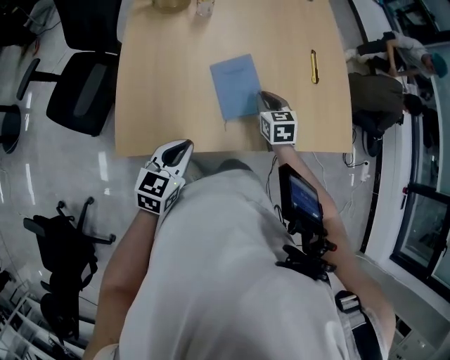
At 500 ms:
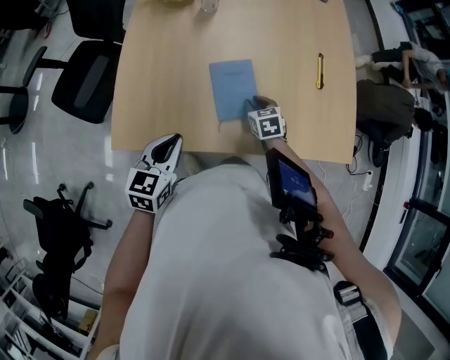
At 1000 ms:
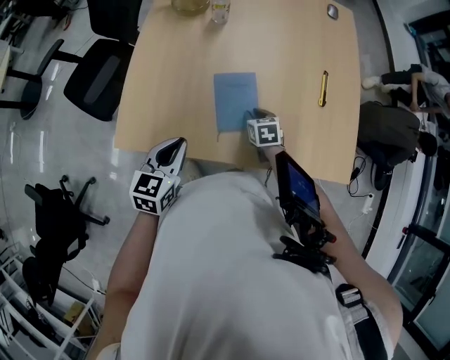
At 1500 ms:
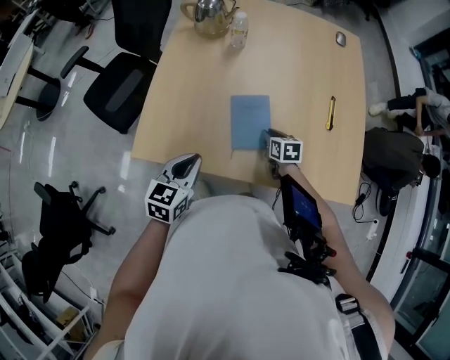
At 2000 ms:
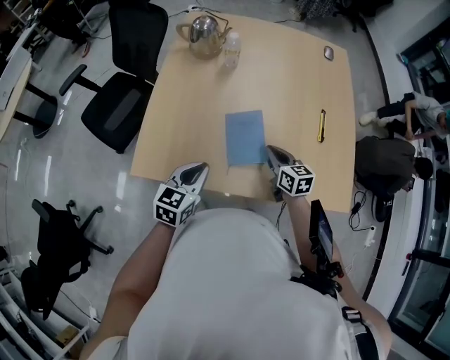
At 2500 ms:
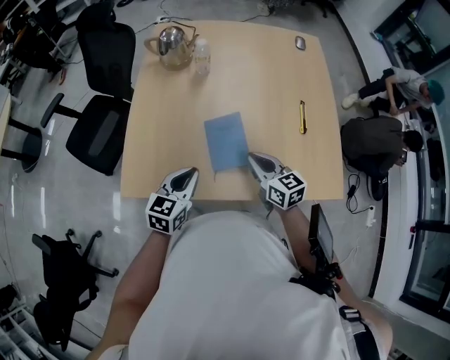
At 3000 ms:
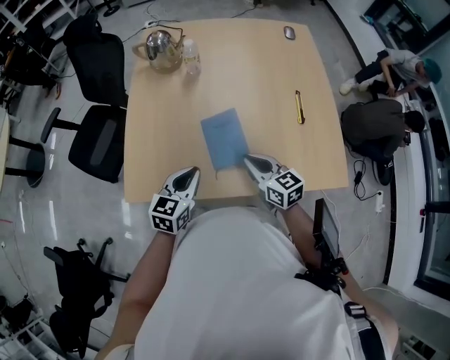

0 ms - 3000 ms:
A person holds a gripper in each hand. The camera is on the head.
0 ms - 1500 ms: The right gripper heads downward, covering about 5 cm, and changes its angle by approximately 20 degrees.
1500 ms - 3000 ms: The left gripper is displaced to the right by roughly 5 cm; the right gripper shifts approximately 20 cm upward and backward, and rotates some 30 degrees.

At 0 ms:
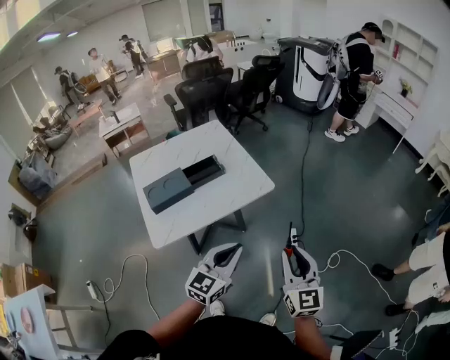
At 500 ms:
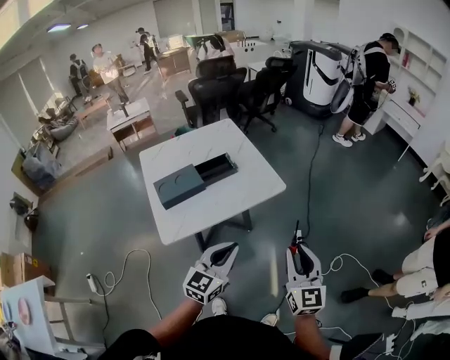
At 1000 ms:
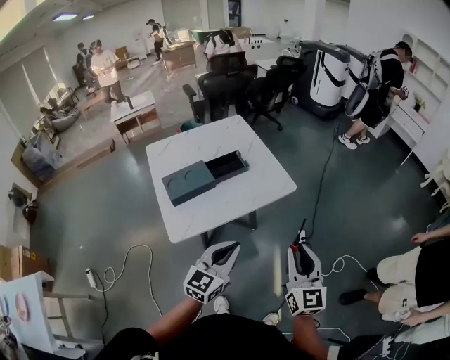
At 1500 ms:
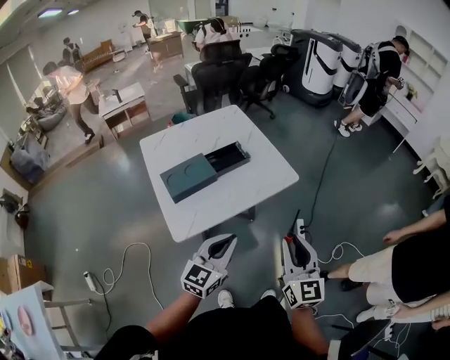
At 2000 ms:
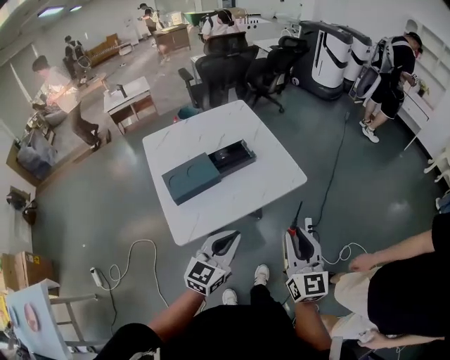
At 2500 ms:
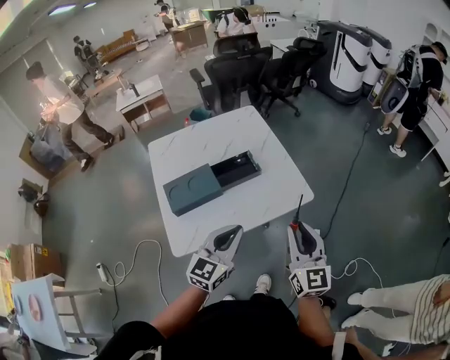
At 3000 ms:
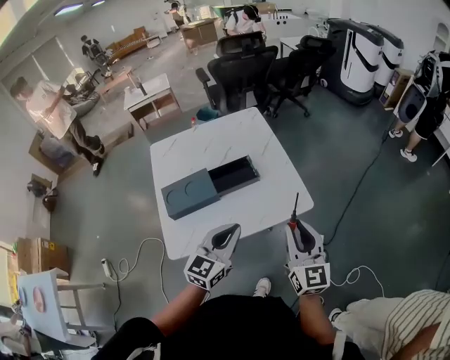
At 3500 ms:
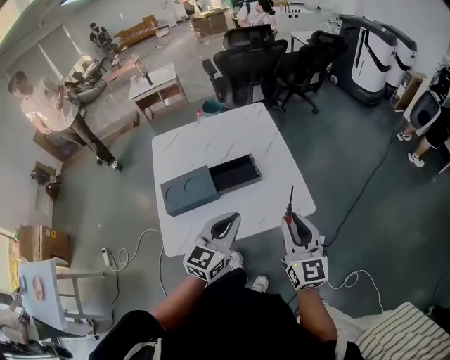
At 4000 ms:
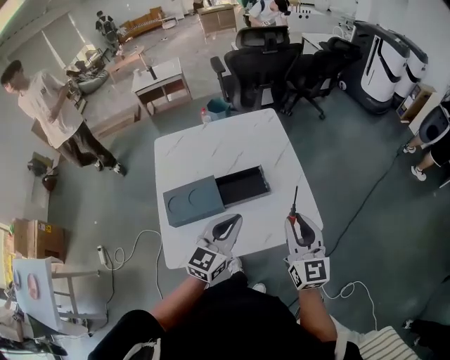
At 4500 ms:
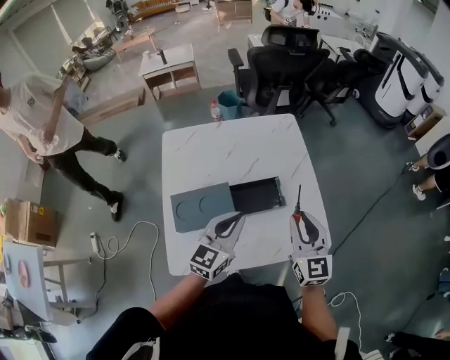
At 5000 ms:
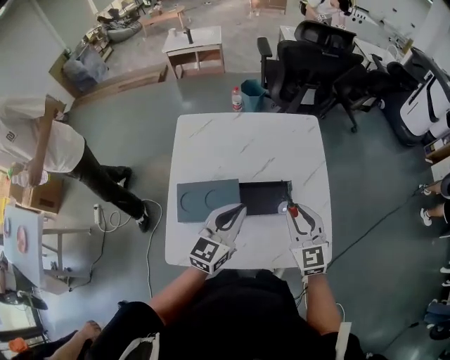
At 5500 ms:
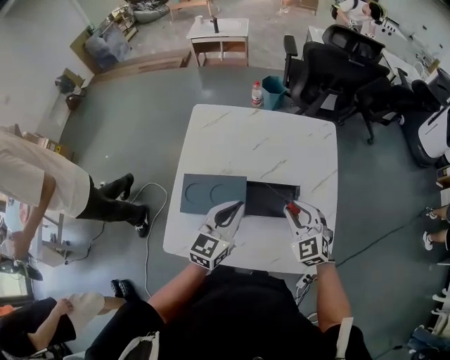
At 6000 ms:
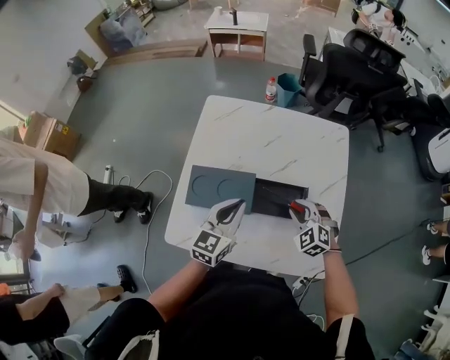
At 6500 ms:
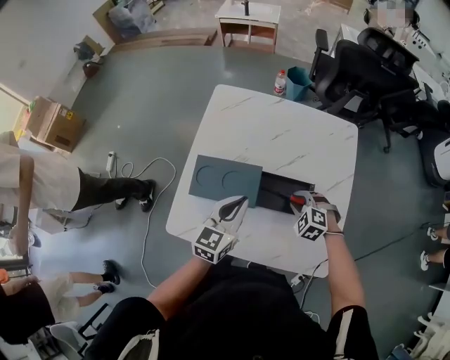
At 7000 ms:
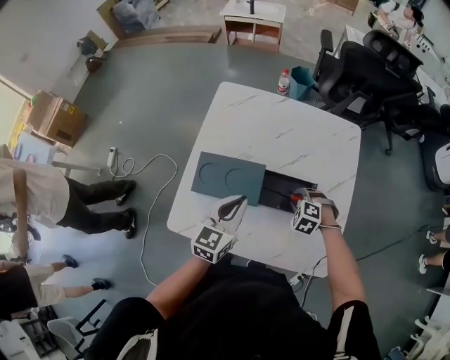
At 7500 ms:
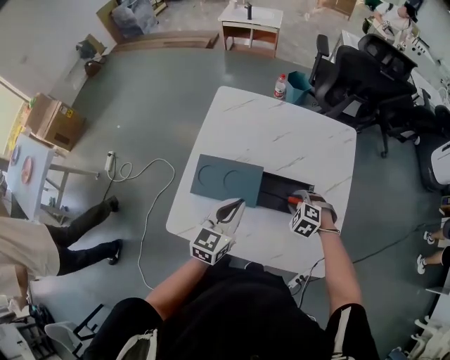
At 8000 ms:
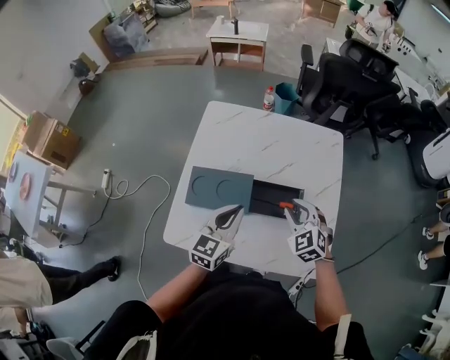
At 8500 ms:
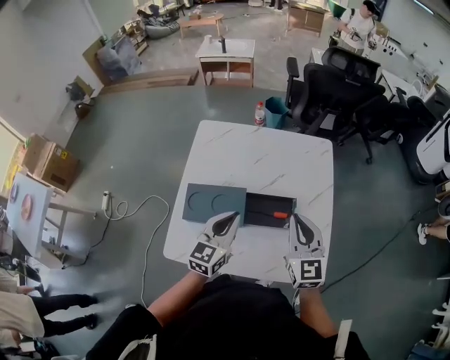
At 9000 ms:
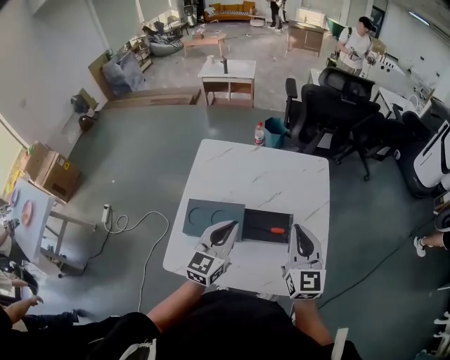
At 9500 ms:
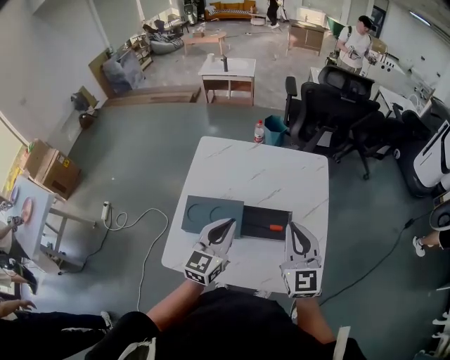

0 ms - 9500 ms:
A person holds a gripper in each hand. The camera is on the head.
0 ms - 2000 ms: The grippers both shift to the left by some 15 cm.
2000 ms - 4000 ms: The two grippers go roughly 25 cm forward.
4000 ms - 5500 ms: The right gripper moves approximately 25 cm, and turns by roughly 60 degrees, while the left gripper ends up roughly 15 cm from where it was, and changes its angle by some 20 degrees.
5500 ms - 7500 ms: The left gripper shifts by approximately 5 cm, while the right gripper heads downward, covering some 15 cm, and tilts its fingers about 40 degrees downward.
7500 ms - 9500 ms: The right gripper goes roughly 30 cm upward, tilts its fingers approximately 60 degrees upward, and closes. Meanwhile the left gripper travels upward by roughly 10 cm.

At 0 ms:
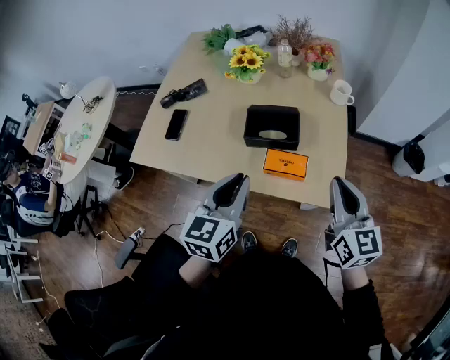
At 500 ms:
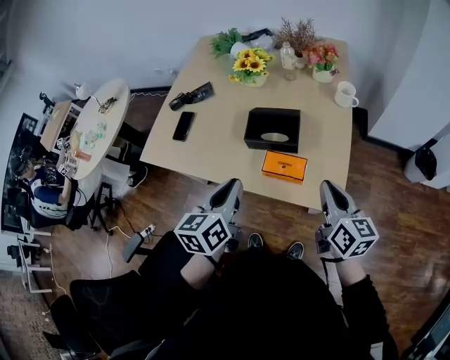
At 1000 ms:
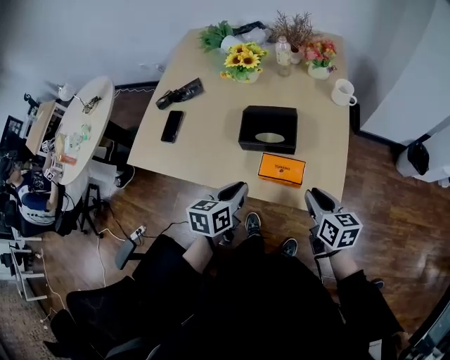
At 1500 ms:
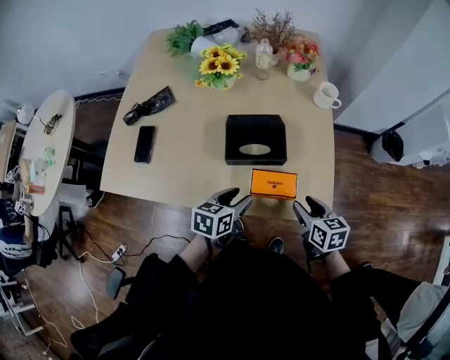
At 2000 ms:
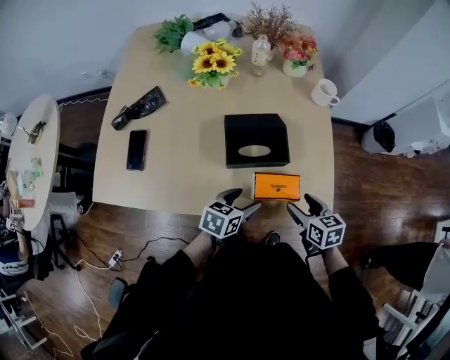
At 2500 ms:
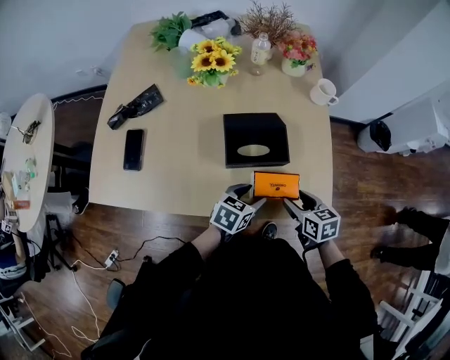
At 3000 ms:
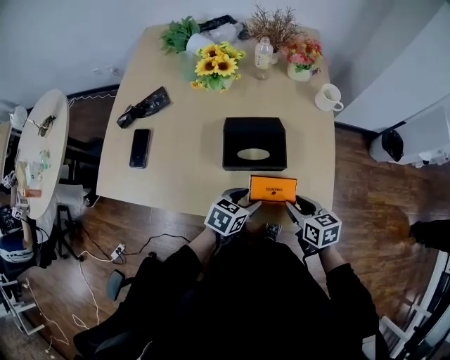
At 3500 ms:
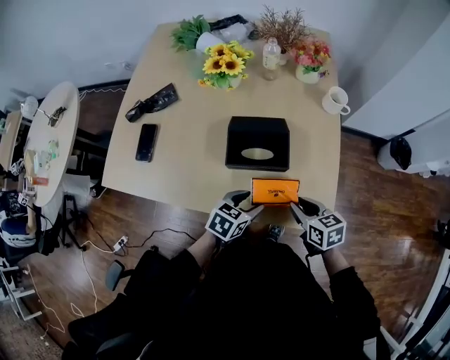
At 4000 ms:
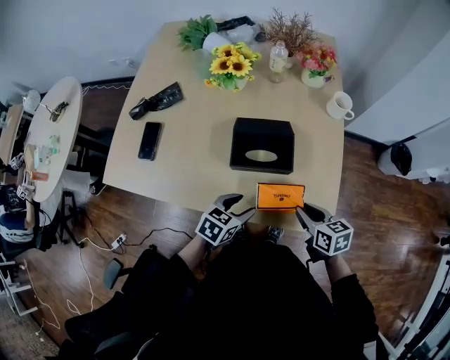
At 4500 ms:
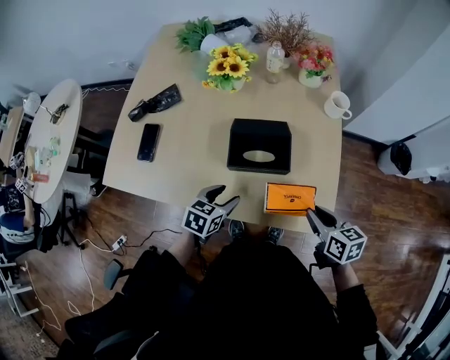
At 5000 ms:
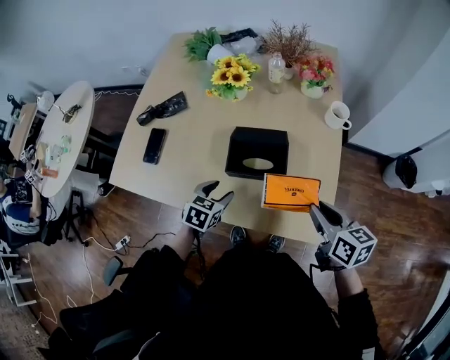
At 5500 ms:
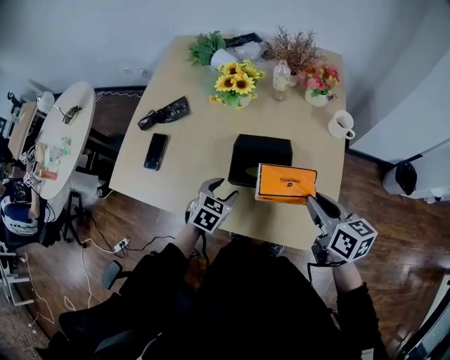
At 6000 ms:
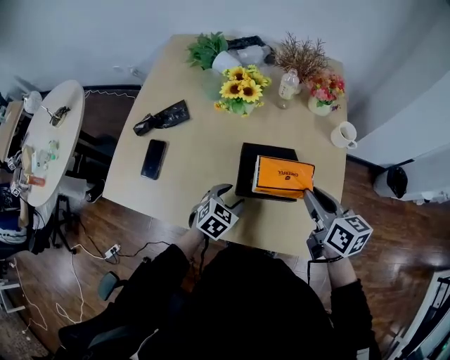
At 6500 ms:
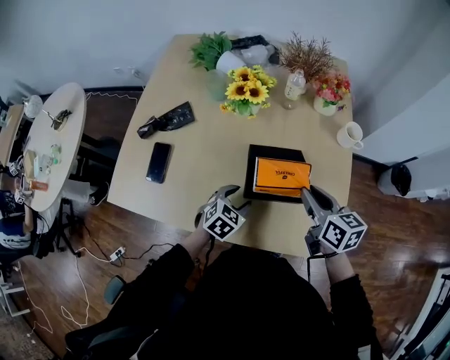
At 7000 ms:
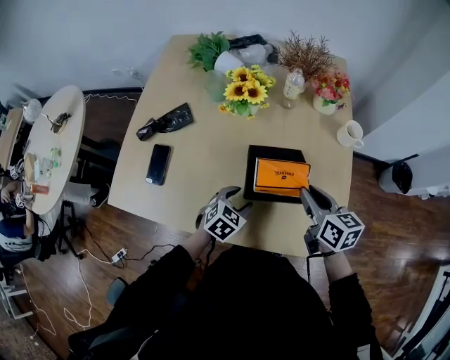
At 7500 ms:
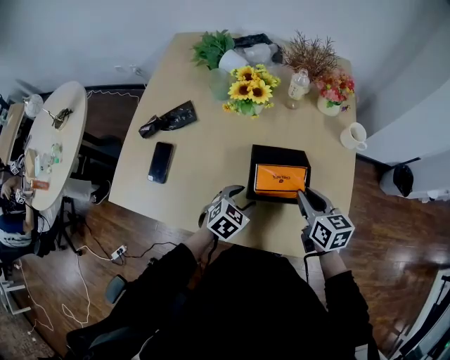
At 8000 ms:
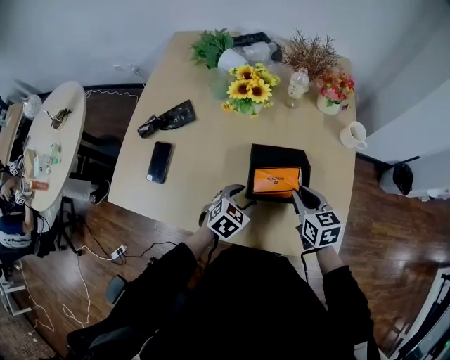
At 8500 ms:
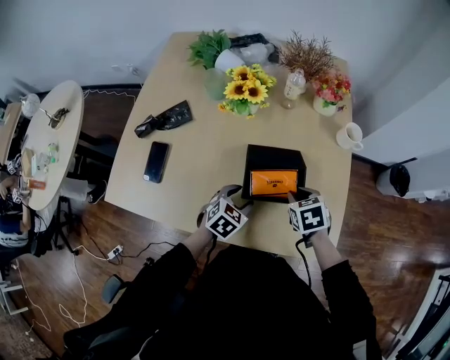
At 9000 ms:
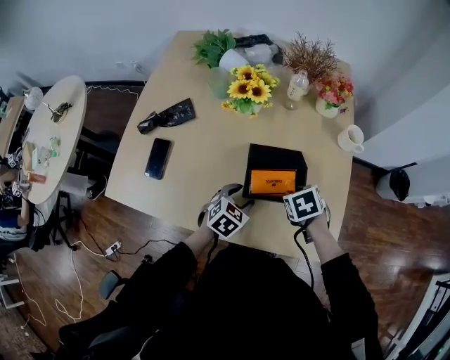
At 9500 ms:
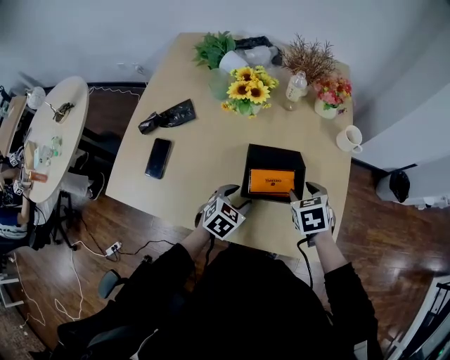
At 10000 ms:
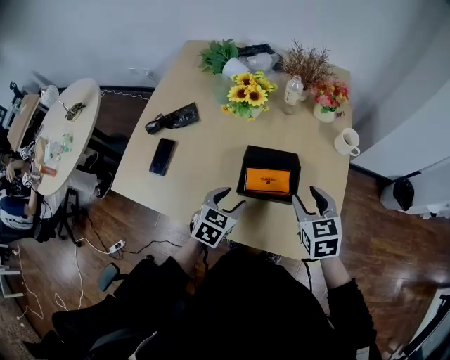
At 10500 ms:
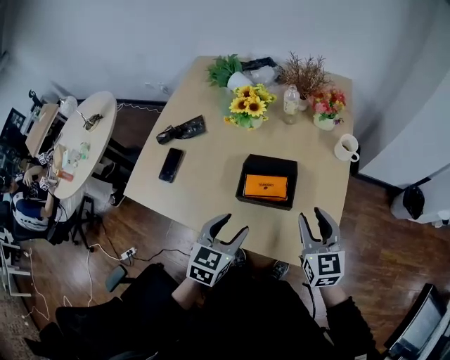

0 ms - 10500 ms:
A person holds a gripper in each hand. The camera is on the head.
0 ms - 2000 ms: The grippers both shift downward by some 25 cm. The left gripper rotates about 40 degrees, and opens up; the right gripper angles its fingers downward, by approximately 30 degrees, and opens.
2000 ms - 4000 ms: The right gripper closes up.
4000 ms - 6500 ms: The right gripper is displaced forward, upward and to the left by some 20 cm; the left gripper shifts some 15 cm forward and to the left, and turns by about 20 degrees.
6500 ms - 8500 ms: The right gripper heads downward, covering some 10 cm, and tilts its fingers approximately 40 degrees downward.
8500 ms - 10500 ms: The left gripper is displaced upward and backward by roughly 20 cm, and turns by roughly 30 degrees. Meanwhile the right gripper travels upward and to the right by roughly 15 cm, and tilts its fingers about 50 degrees upward.

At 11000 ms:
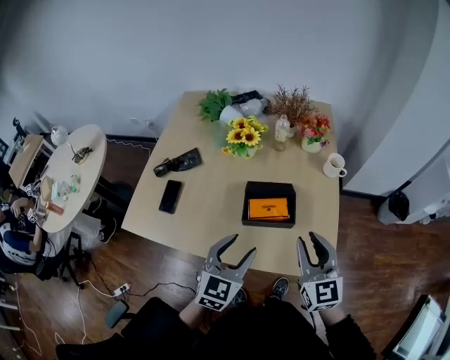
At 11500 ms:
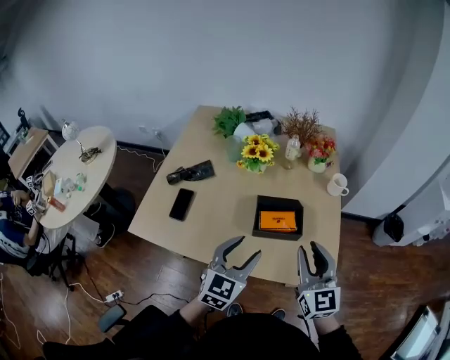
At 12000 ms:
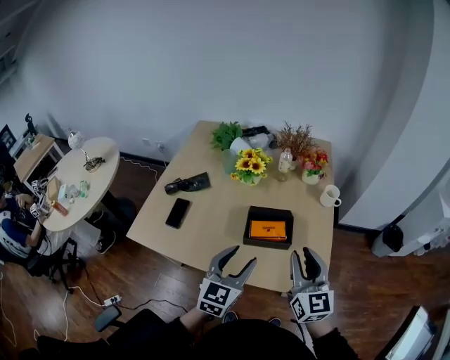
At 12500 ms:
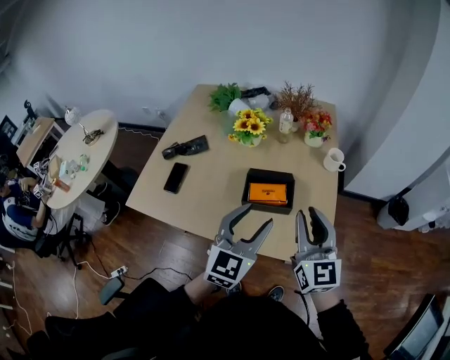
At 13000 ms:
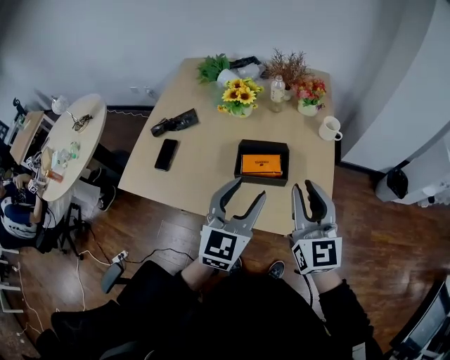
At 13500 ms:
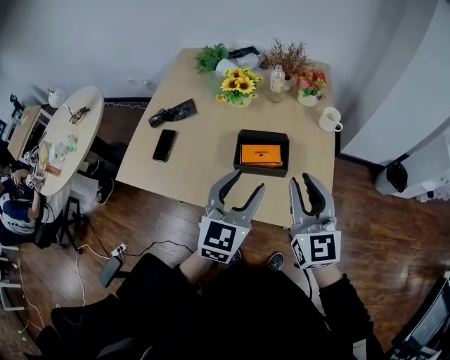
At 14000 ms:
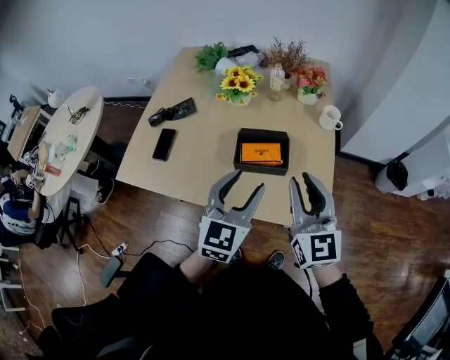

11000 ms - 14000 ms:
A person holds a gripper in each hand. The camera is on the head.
11000 ms - 12500 ms: The grippers both shift upward by about 5 cm.
12500 ms - 14000 ms: There are only small adjustments of the grippers.
